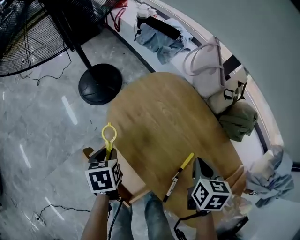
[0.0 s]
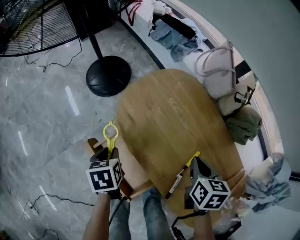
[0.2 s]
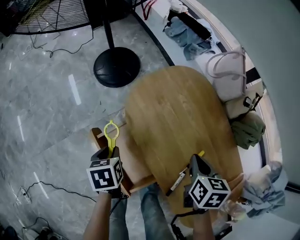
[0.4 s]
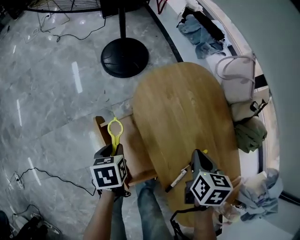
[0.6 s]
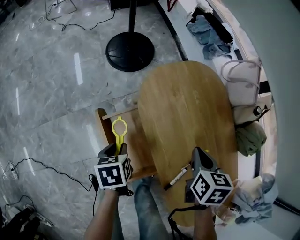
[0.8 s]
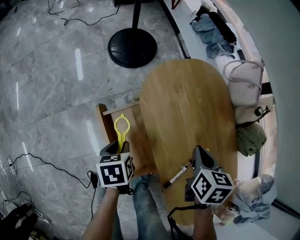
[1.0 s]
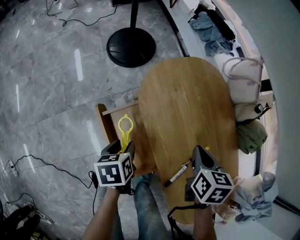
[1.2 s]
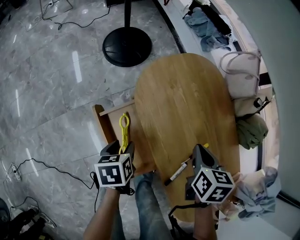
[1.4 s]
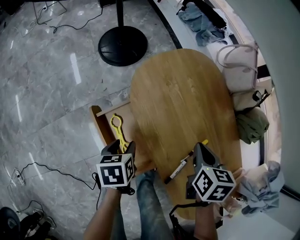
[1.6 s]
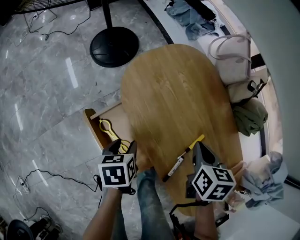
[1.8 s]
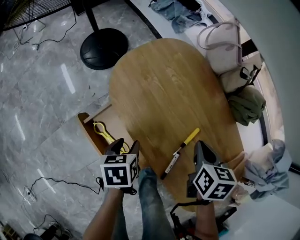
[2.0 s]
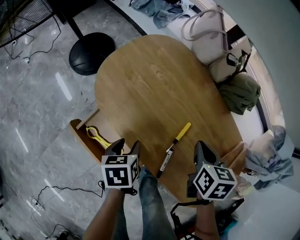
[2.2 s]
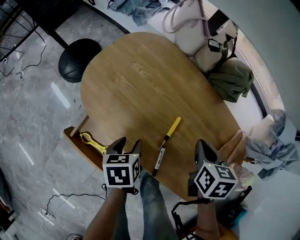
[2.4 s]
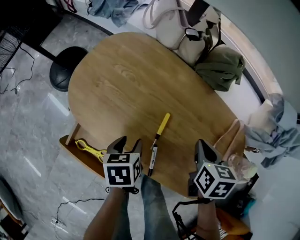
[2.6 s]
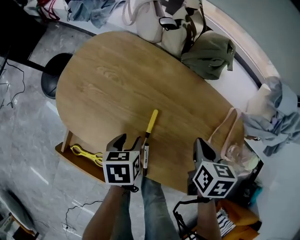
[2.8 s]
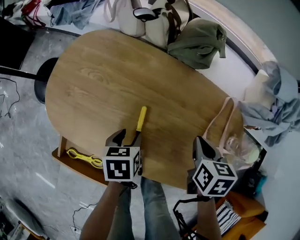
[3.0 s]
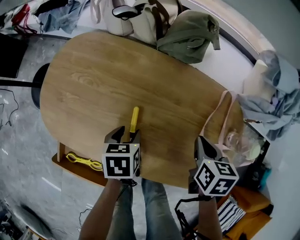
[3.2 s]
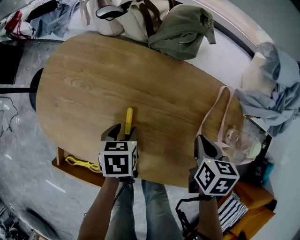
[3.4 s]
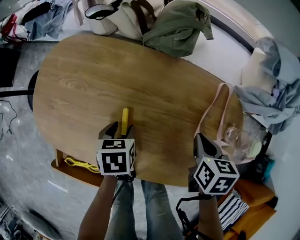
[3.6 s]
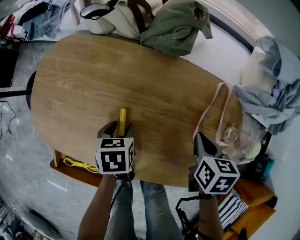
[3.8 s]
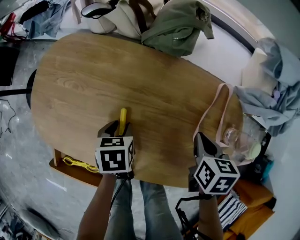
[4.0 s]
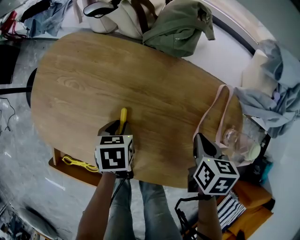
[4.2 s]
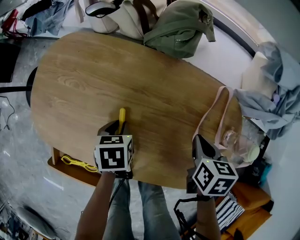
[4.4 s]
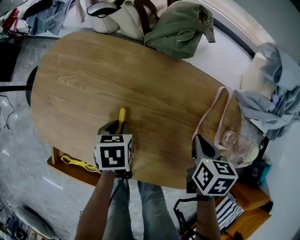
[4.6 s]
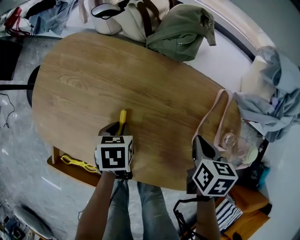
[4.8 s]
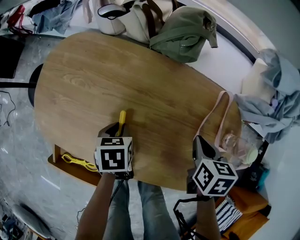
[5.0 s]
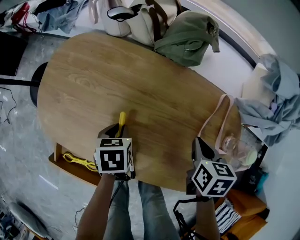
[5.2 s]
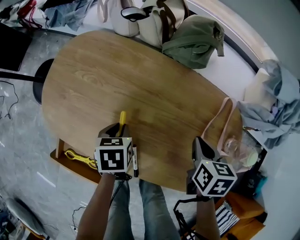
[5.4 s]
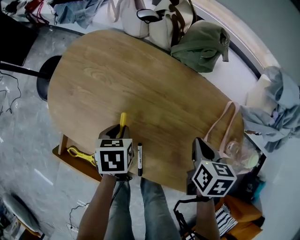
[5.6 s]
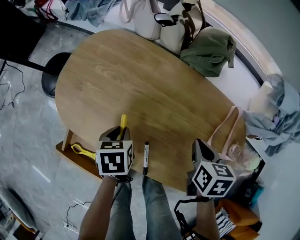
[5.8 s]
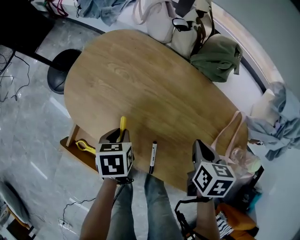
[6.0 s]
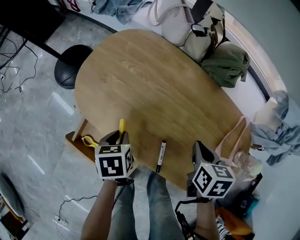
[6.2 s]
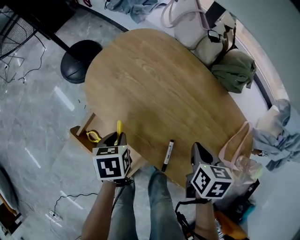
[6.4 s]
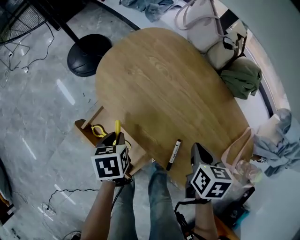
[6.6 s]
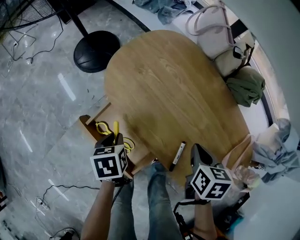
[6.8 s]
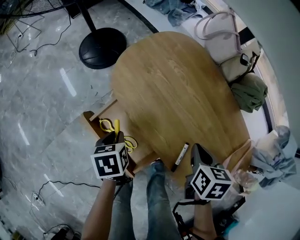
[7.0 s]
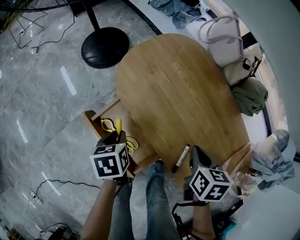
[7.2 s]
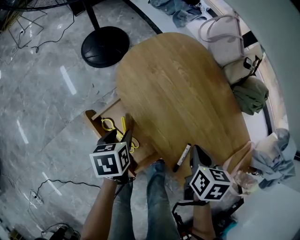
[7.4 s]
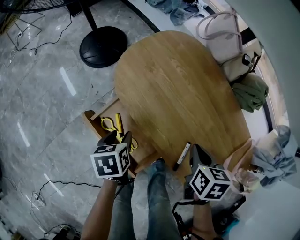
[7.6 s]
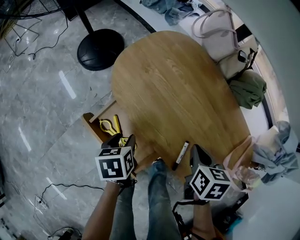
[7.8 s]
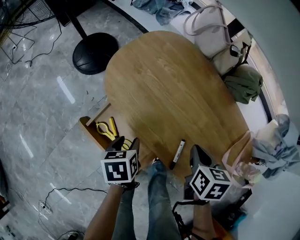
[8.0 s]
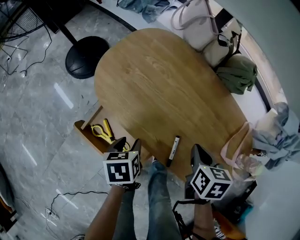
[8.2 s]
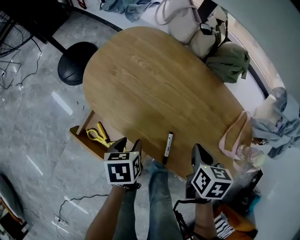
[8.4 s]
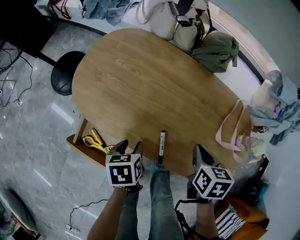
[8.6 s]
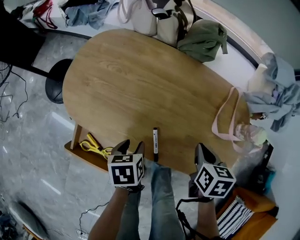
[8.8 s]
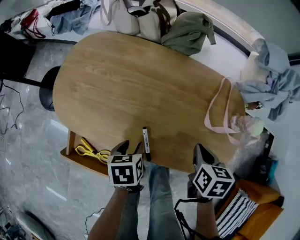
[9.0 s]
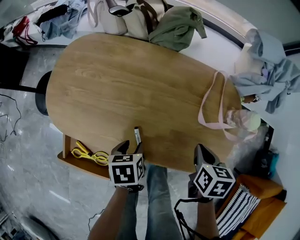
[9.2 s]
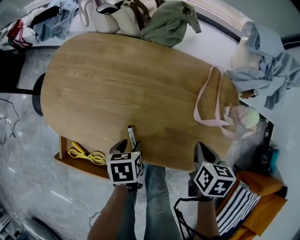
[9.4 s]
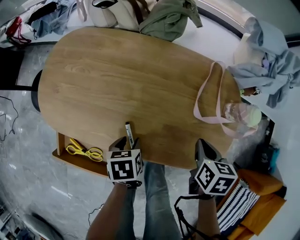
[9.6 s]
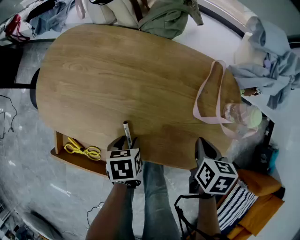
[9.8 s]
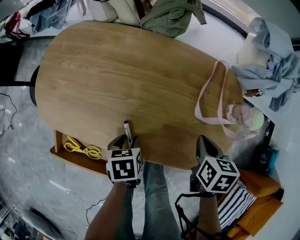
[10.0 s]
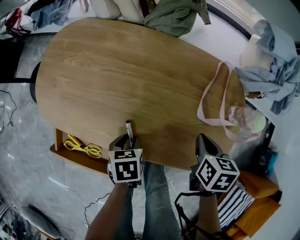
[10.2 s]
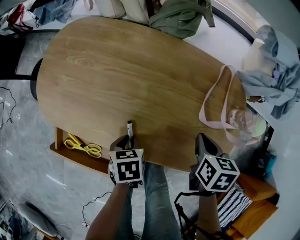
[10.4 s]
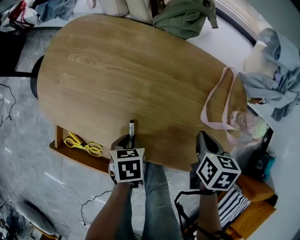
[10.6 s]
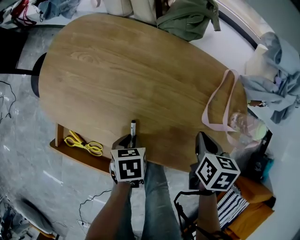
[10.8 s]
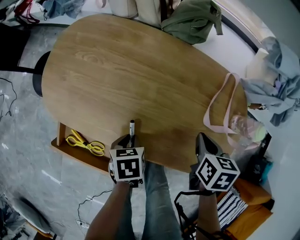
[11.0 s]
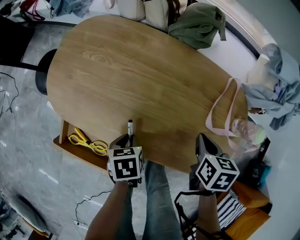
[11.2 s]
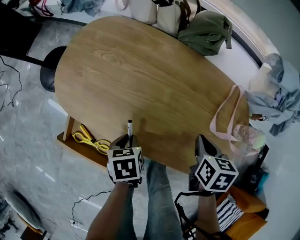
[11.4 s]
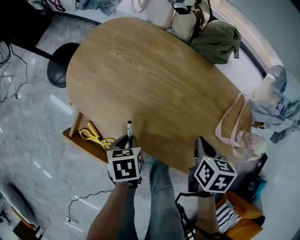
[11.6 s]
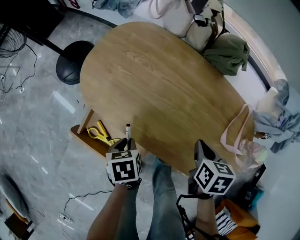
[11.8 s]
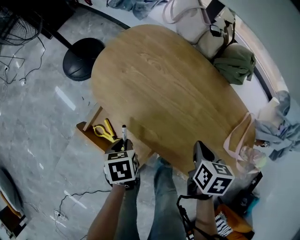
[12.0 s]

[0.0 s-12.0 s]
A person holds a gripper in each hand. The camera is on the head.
0.0 to 1.6 s: The left gripper heads backward and downward, covering about 10 cm, and opens up. Meanwhile the right gripper heads to the left, covering some 10 cm.
1.6 to 3.0 s: The left gripper ends up some 30 cm from where it was, and twists approximately 40 degrees clockwise, seen from behind. Meanwhile the right gripper changes place by roughly 30 cm, and changes its angle by roughly 40 degrees.
3.0 to 4.4 s: The right gripper travels to the right by roughly 5 cm. Meanwhile the left gripper heads forward, covering roughly 5 cm, and closes up.
4.4 to 6.0 s: The right gripper shifts some 10 cm to the left. Meanwhile the left gripper shifts some 15 cm to the left, backward and upward.
6.0 to 7.6 s: The left gripper is displaced to the left and backward by approximately 20 cm, turns by some 30 degrees, and opens its fingers, while the right gripper goes some 15 cm to the left.
7.6 to 9.0 s: The left gripper moves roughly 25 cm, and rotates roughly 40 degrees; the right gripper ends up some 20 cm from where it was, and turns by approximately 30 degrees.
9.0 to 10.4 s: The left gripper changes place by some 5 cm, and closes. Meanwhile the right gripper shifts by roughly 5 cm.
10.4 to 12.0 s: The right gripper moves some 20 cm, while the left gripper moves approximately 20 cm, and turns by roughly 30 degrees.

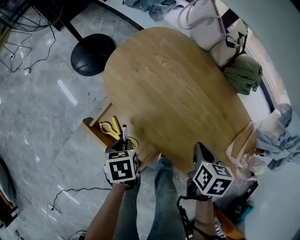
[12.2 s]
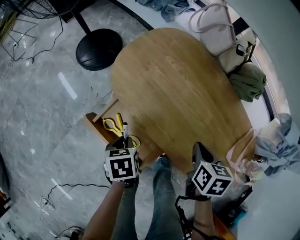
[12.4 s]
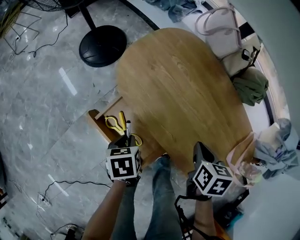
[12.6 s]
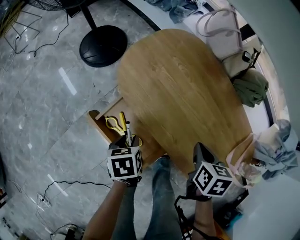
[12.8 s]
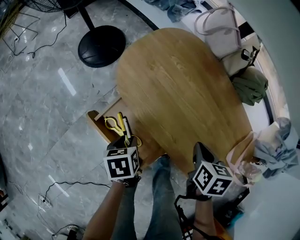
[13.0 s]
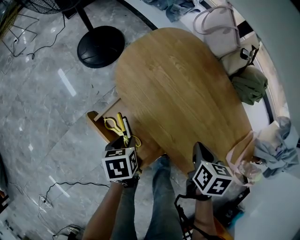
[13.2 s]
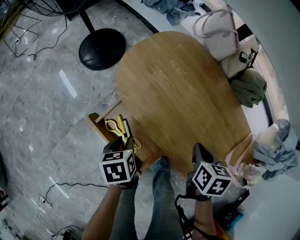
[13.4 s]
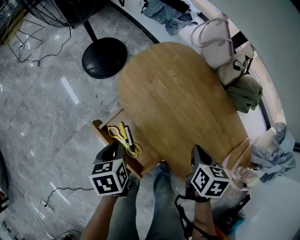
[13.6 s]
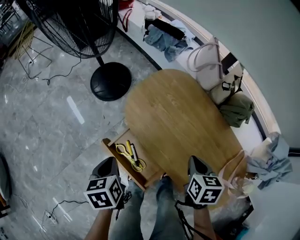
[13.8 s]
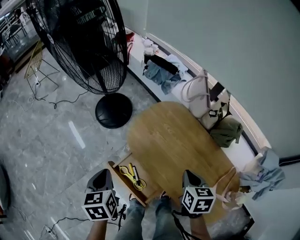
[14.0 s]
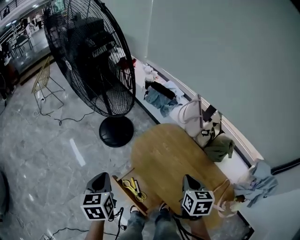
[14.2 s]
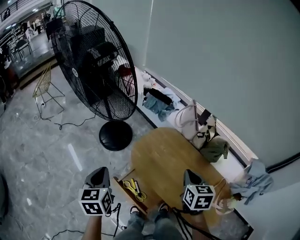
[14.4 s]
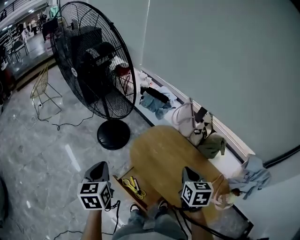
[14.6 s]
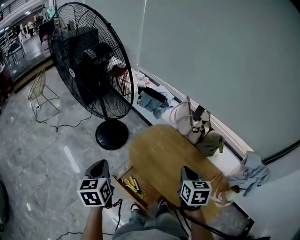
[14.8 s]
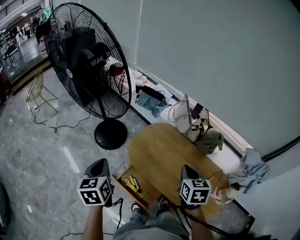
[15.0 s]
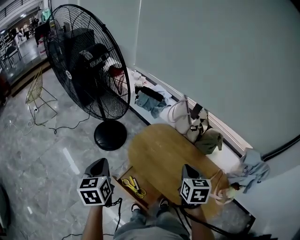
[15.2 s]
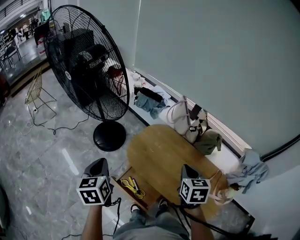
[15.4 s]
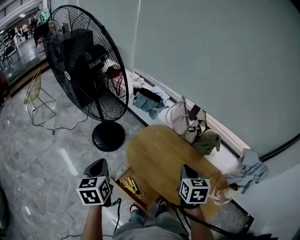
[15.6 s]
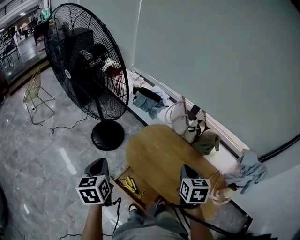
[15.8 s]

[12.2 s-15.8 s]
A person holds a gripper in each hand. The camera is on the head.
12.2 to 14.0 s: The left gripper heads upward and to the left, covering about 30 cm, turns by approximately 30 degrees, and opens, then closes once more; the right gripper is displaced upward and to the left by some 20 cm.
14.0 to 15.8 s: The grippers both shift upward by some 15 cm.

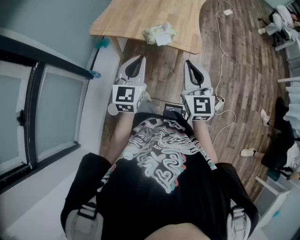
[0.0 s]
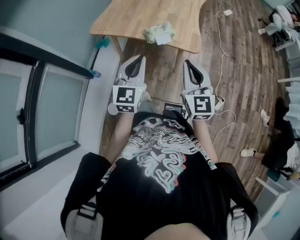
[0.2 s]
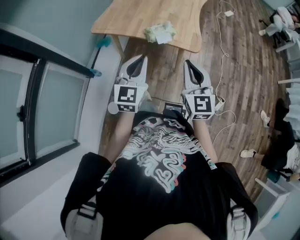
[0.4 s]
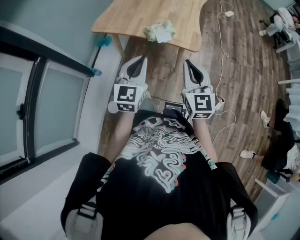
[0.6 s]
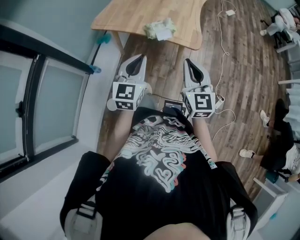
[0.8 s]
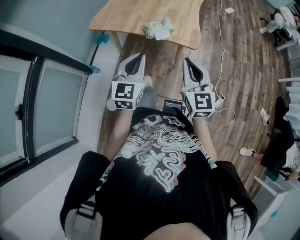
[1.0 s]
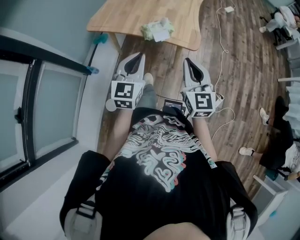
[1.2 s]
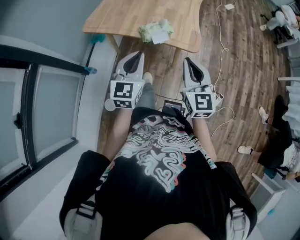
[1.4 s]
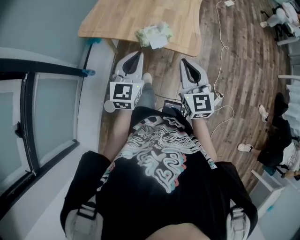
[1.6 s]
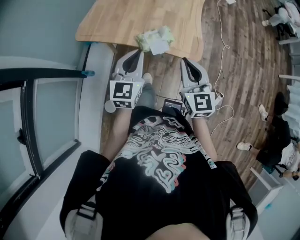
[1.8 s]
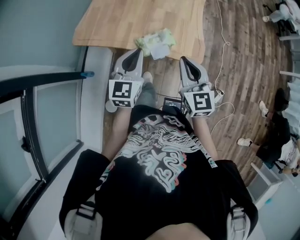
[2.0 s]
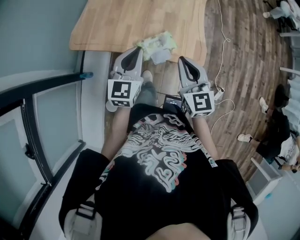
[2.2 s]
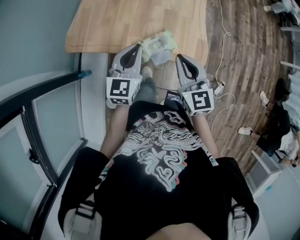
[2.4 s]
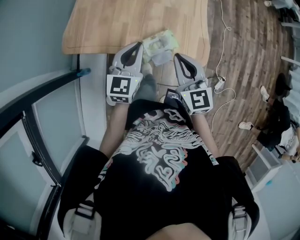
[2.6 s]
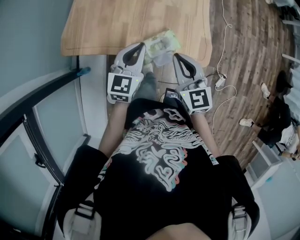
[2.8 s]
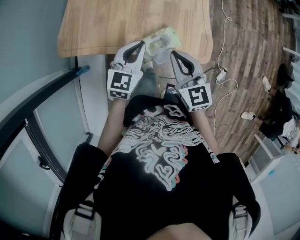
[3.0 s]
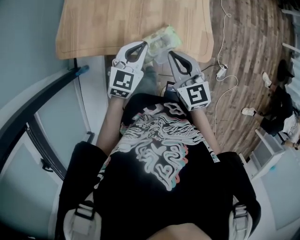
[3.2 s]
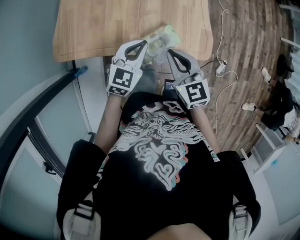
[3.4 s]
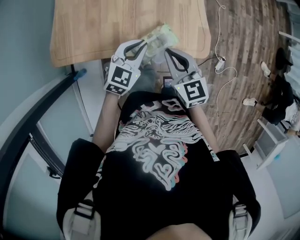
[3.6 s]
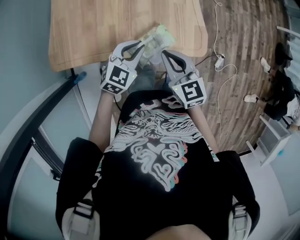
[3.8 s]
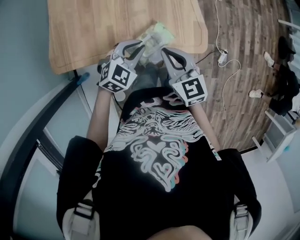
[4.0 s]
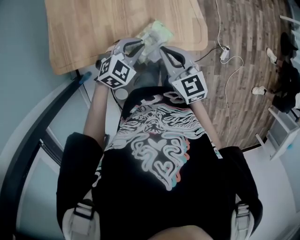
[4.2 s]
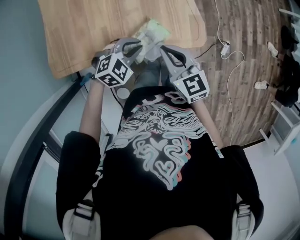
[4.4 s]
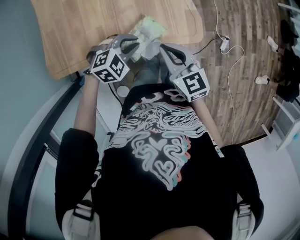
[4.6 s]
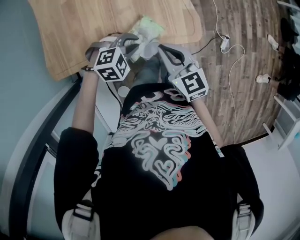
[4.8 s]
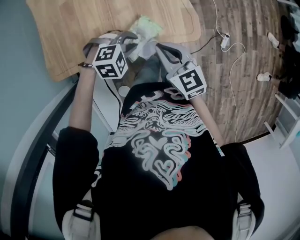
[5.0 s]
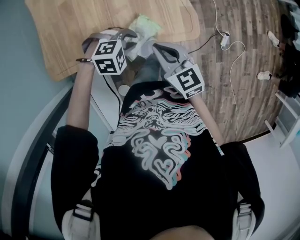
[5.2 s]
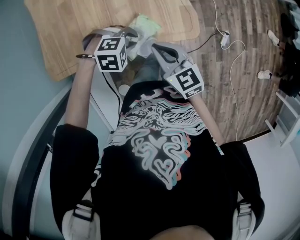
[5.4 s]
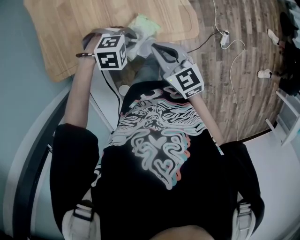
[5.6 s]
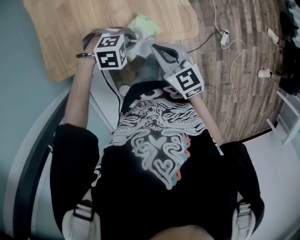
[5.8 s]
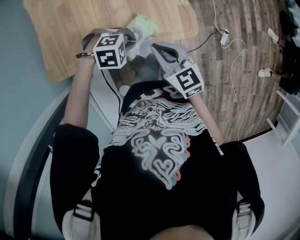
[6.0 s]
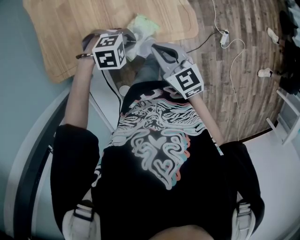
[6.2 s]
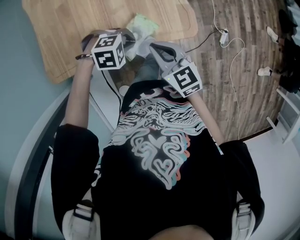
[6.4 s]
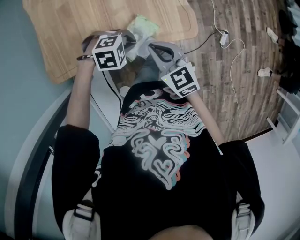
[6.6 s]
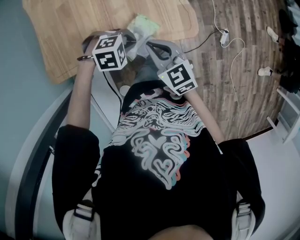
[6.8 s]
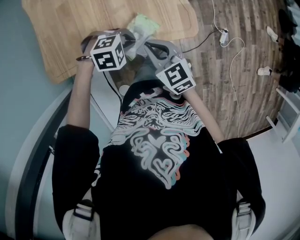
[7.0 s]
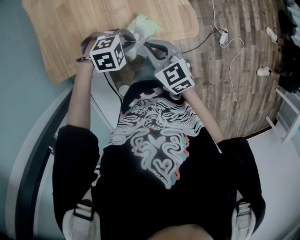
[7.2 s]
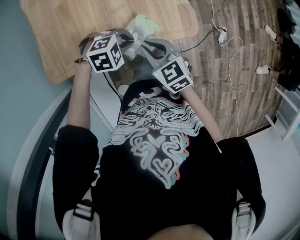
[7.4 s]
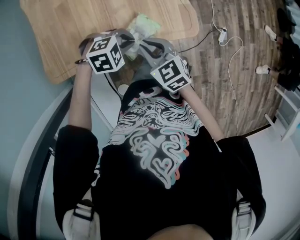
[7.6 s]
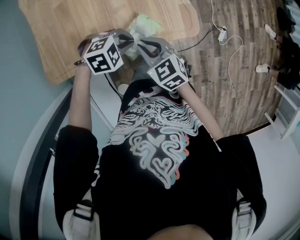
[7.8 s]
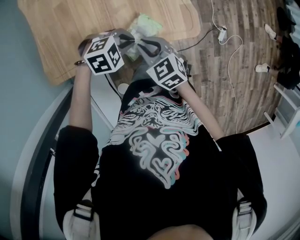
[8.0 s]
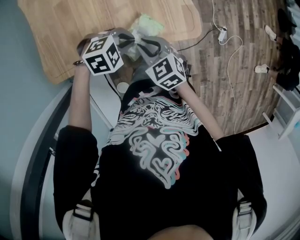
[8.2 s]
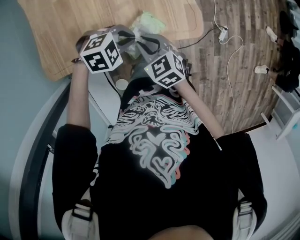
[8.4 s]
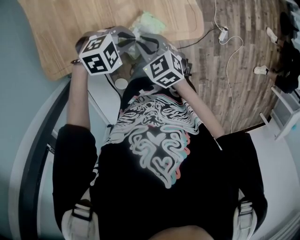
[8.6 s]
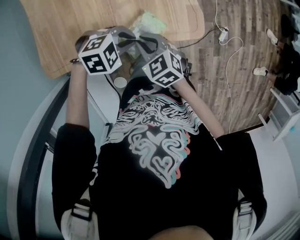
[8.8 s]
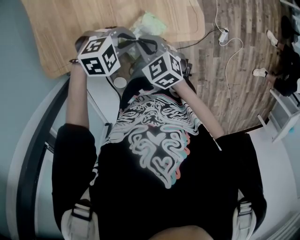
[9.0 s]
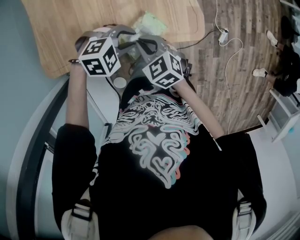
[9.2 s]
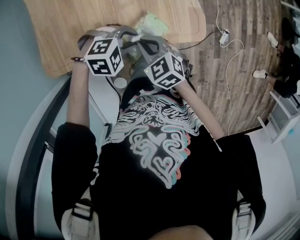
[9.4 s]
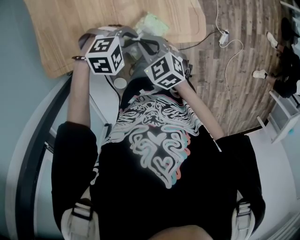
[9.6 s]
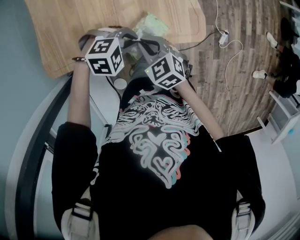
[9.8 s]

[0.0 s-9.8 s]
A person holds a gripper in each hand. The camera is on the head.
0.0 to 1.4 s: The left gripper shifts by approximately 5 cm, while the right gripper changes place by some 5 cm.
1.4 to 2.8 s: The two grippers go about 25 cm forward. The left gripper swivels roughly 20 degrees.
2.8 to 4.2 s: The left gripper travels downward by about 10 cm, and turns by roughly 50 degrees, while the right gripper changes place by some 5 cm.
4.2 to 5.6 s: The left gripper rotates some 50 degrees.
5.6 to 7.0 s: The grippers stay close to where they were, moving slightly.
7.0 to 8.4 s: The right gripper moves approximately 5 cm.
8.4 to 9.8 s: The left gripper opens, then closes again.
